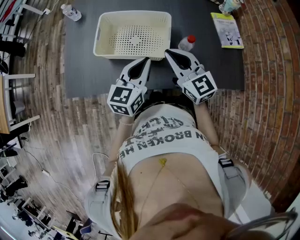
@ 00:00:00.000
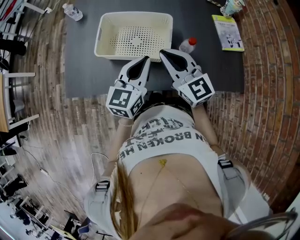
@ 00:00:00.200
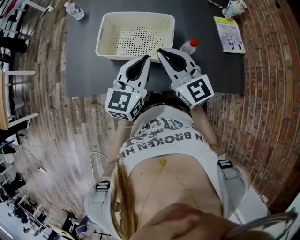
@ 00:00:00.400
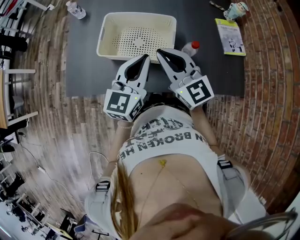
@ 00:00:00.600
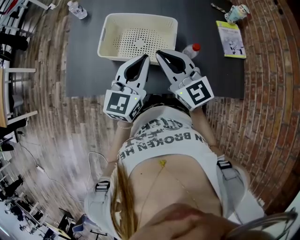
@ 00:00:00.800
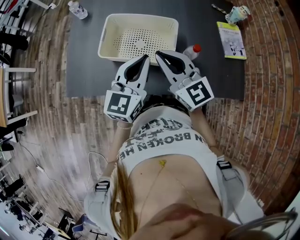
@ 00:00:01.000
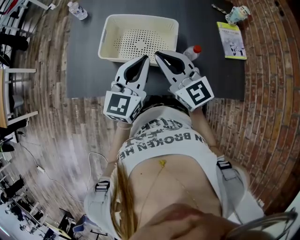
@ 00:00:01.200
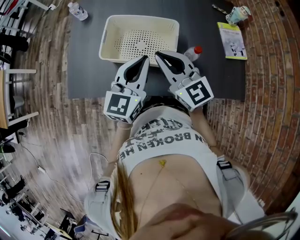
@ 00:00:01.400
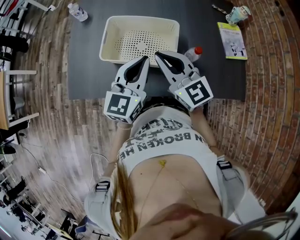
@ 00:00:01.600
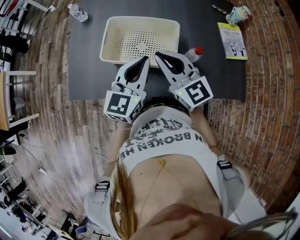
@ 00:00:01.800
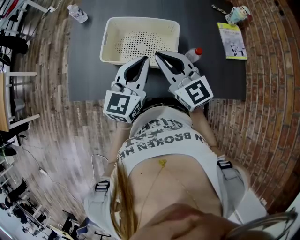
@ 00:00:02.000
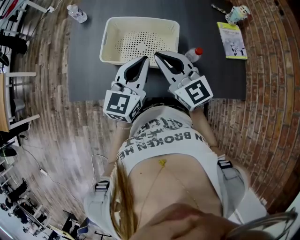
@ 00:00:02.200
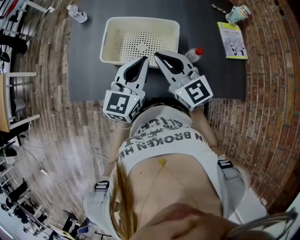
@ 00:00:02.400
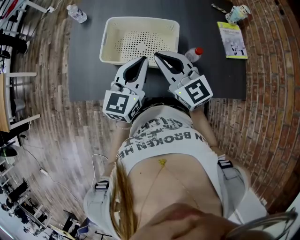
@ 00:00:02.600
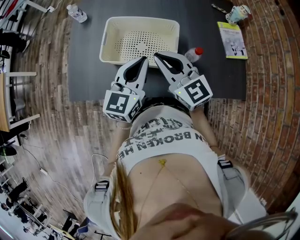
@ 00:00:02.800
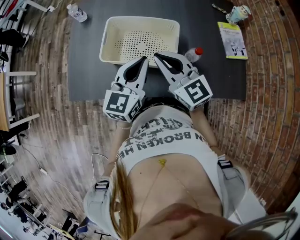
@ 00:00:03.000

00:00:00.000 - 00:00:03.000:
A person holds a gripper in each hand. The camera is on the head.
00:00:00.000 - 00:00:01.600: The left gripper shifts approximately 5 cm upward. Meanwhile the right gripper goes about 5 cm to the left.
00:00:01.600 - 00:00:03.000: The grippers stay close to where they were, moving slightly.

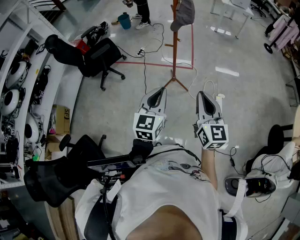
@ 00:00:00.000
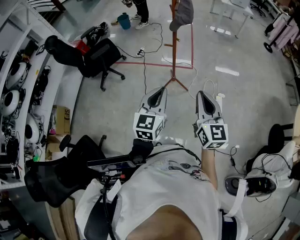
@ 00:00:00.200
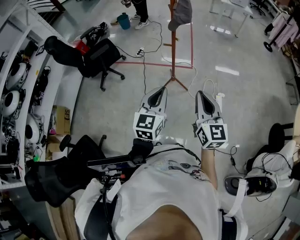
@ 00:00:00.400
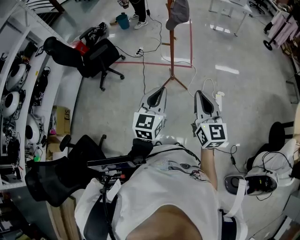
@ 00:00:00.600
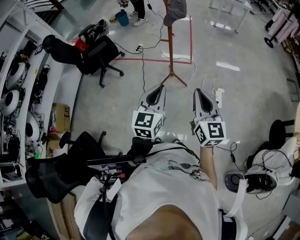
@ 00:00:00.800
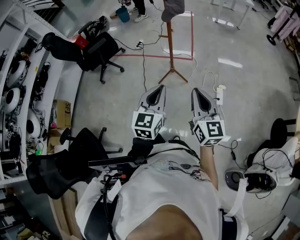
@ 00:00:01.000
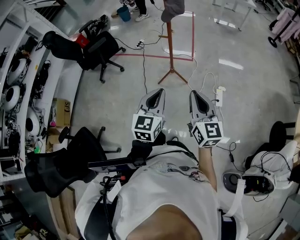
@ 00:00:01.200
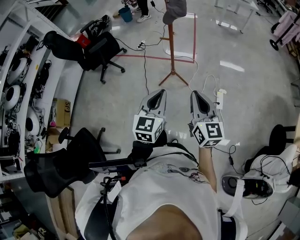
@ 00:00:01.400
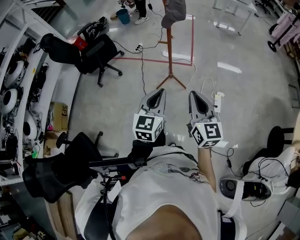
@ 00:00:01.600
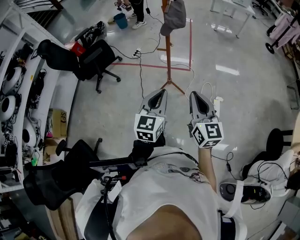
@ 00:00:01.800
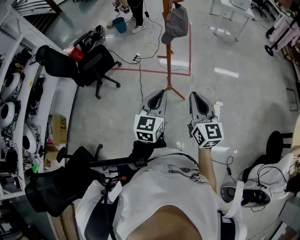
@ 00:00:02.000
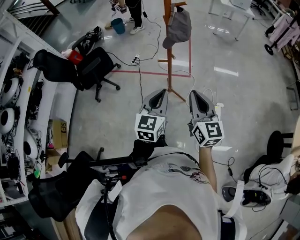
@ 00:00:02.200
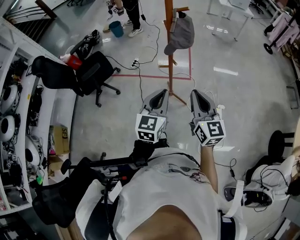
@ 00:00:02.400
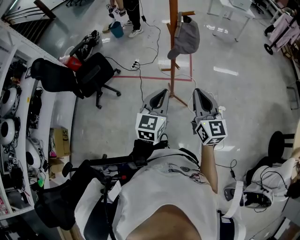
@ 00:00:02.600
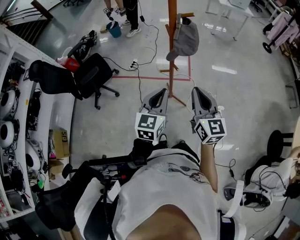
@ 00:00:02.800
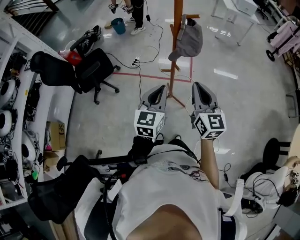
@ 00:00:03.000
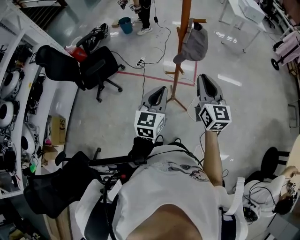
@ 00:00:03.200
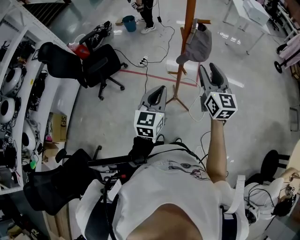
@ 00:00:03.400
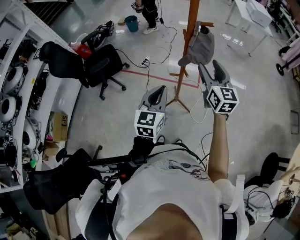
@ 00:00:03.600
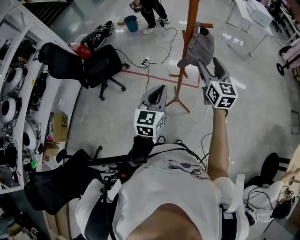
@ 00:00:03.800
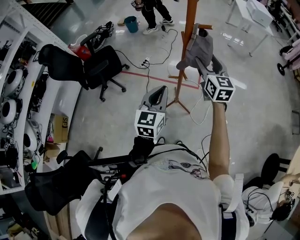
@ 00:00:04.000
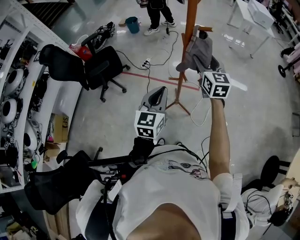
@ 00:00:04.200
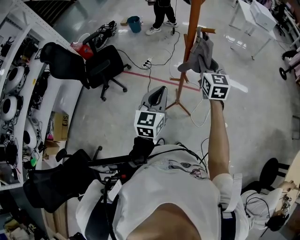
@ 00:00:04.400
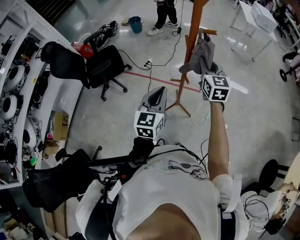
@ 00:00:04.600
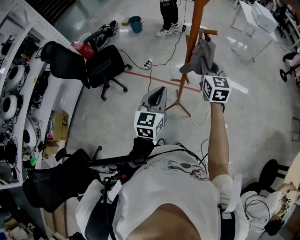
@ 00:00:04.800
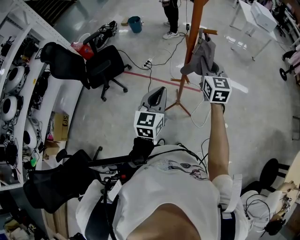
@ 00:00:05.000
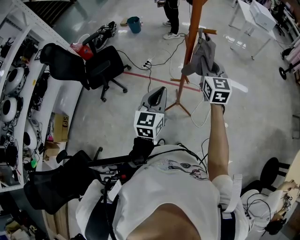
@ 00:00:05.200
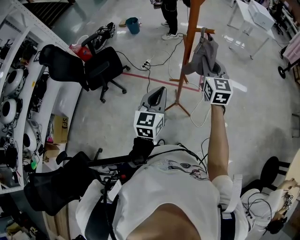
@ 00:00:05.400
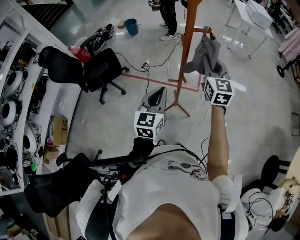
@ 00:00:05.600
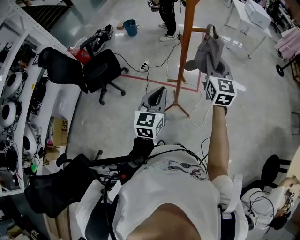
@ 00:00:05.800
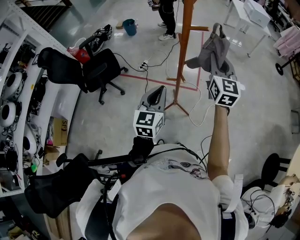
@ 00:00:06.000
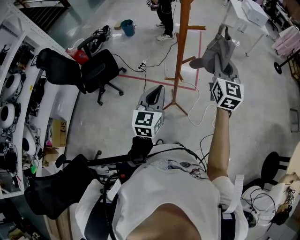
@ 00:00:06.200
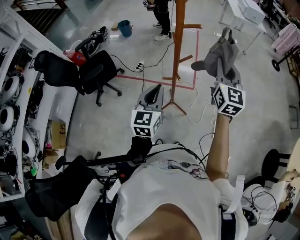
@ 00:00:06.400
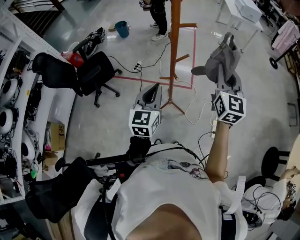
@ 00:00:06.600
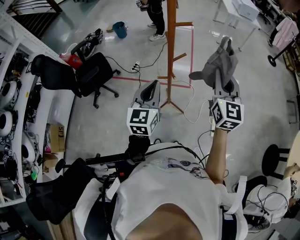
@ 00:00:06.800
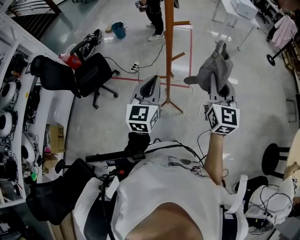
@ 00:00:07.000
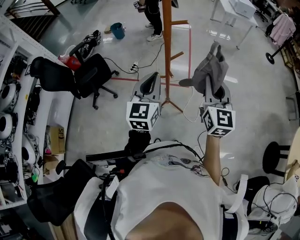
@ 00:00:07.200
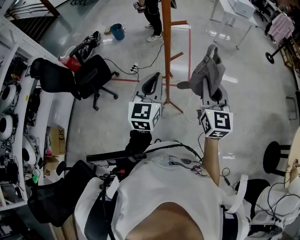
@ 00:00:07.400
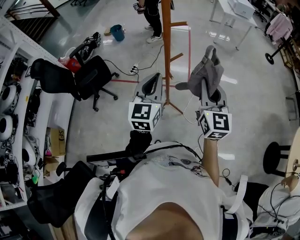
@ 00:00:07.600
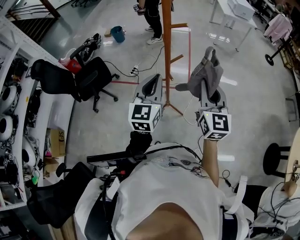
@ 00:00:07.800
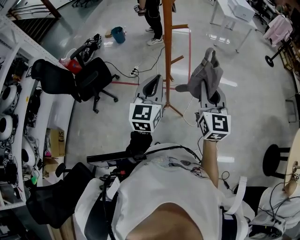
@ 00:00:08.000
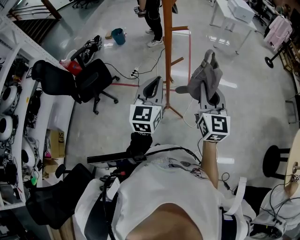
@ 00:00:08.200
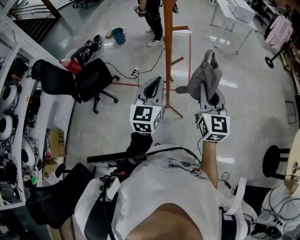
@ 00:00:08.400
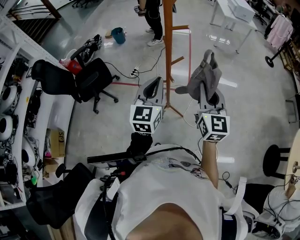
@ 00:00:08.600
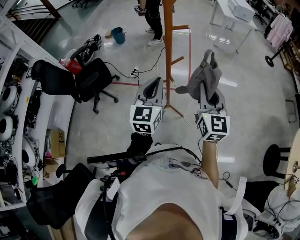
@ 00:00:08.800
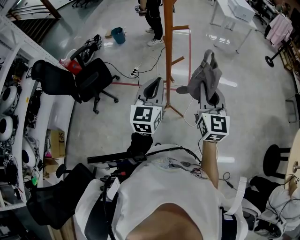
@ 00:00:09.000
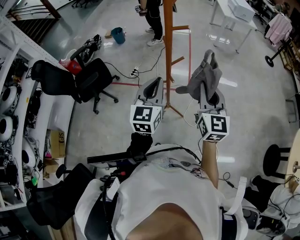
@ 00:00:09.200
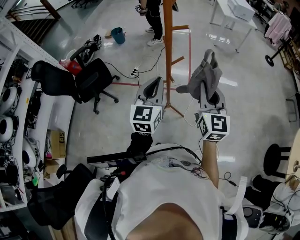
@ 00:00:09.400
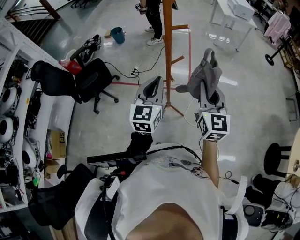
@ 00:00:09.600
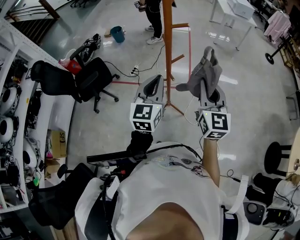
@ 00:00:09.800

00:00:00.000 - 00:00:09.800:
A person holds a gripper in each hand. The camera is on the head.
00:00:00.000 - 00:00:01.400: The right gripper changes place by about 5 cm, while the left gripper moves to the right, some 5 cm.
00:00:01.400 - 00:00:02.800: Both grippers travel together forward, roughly 25 cm.
00:00:02.800 - 00:00:04.200: The left gripper goes approximately 5 cm forward; the right gripper travels forward by some 25 cm, and opens up.
00:00:04.200 - 00:00:05.600: The right gripper closes its fingers.
00:00:05.600 - 00:00:07.000: The left gripper travels upward by about 5 cm. Meanwhile the right gripper moves backward and to the right, some 15 cm.
00:00:07.000 - 00:00:08.400: There are only small adjustments of the grippers.
00:00:08.400 - 00:00:09.800: Both grippers stay about where they are.

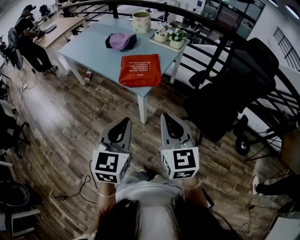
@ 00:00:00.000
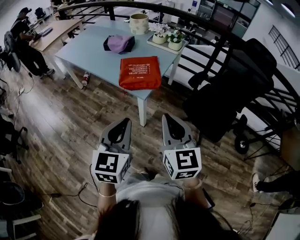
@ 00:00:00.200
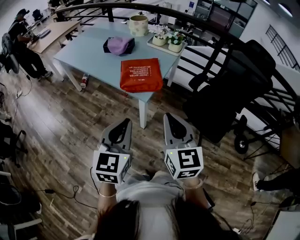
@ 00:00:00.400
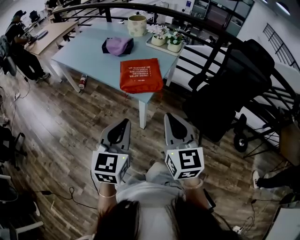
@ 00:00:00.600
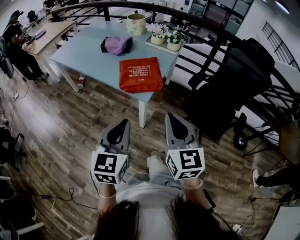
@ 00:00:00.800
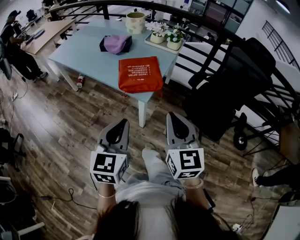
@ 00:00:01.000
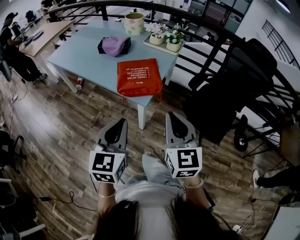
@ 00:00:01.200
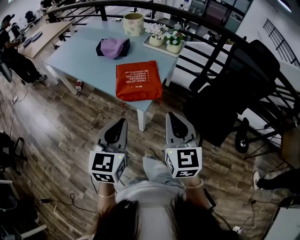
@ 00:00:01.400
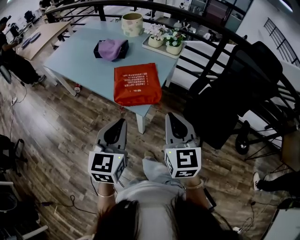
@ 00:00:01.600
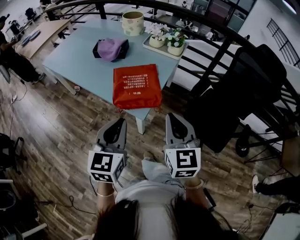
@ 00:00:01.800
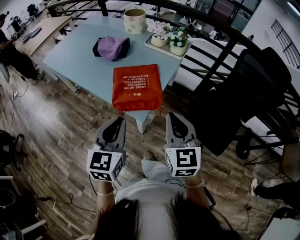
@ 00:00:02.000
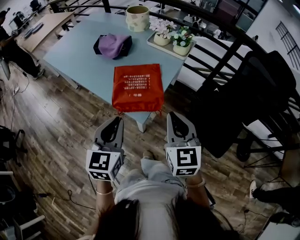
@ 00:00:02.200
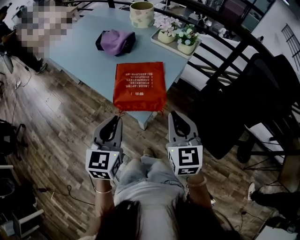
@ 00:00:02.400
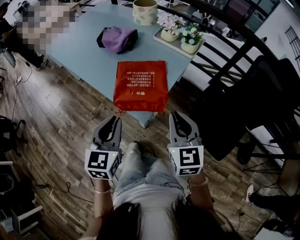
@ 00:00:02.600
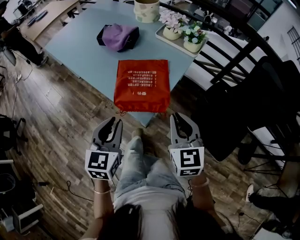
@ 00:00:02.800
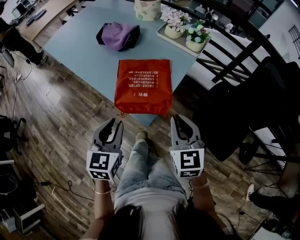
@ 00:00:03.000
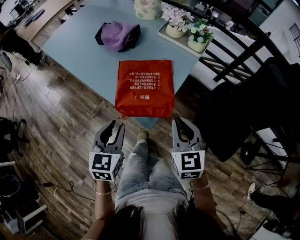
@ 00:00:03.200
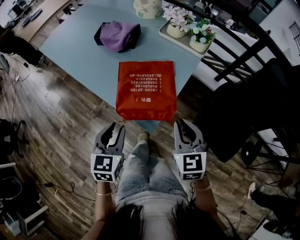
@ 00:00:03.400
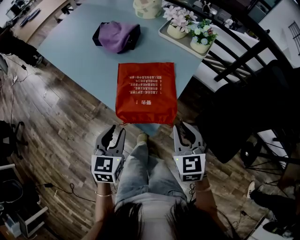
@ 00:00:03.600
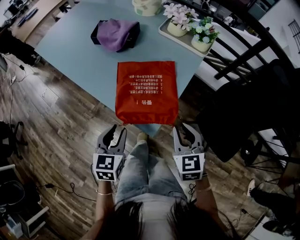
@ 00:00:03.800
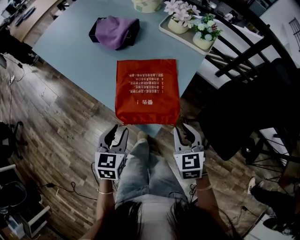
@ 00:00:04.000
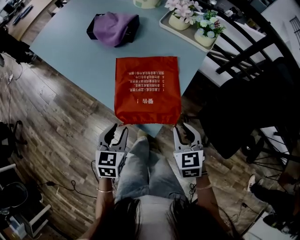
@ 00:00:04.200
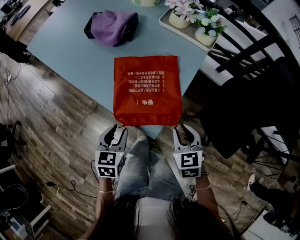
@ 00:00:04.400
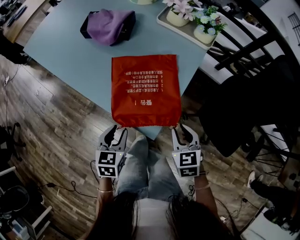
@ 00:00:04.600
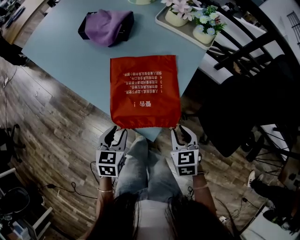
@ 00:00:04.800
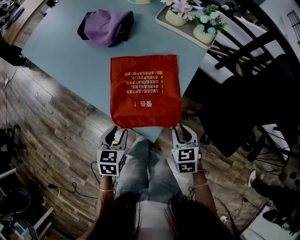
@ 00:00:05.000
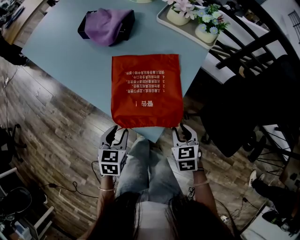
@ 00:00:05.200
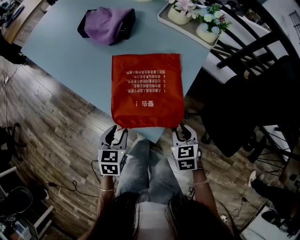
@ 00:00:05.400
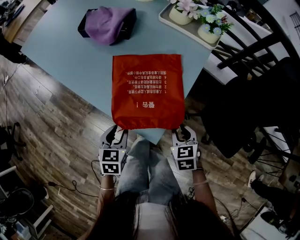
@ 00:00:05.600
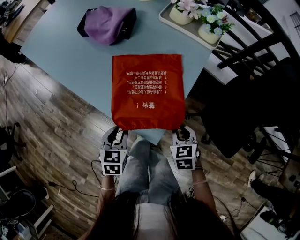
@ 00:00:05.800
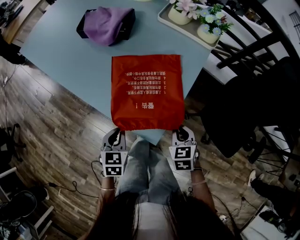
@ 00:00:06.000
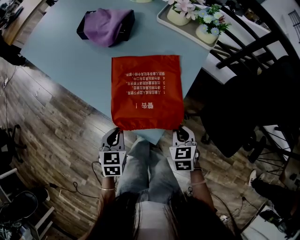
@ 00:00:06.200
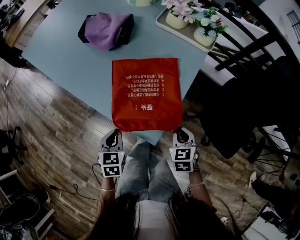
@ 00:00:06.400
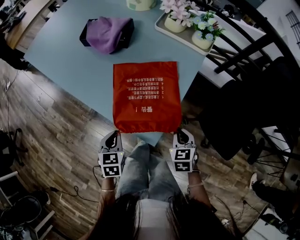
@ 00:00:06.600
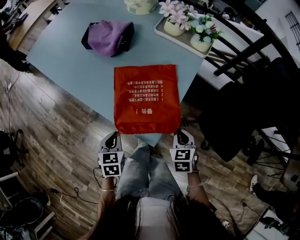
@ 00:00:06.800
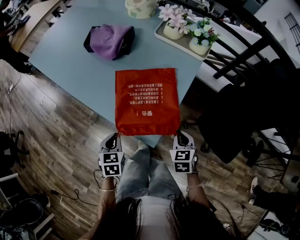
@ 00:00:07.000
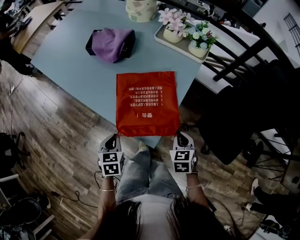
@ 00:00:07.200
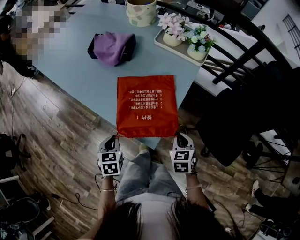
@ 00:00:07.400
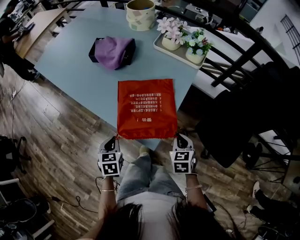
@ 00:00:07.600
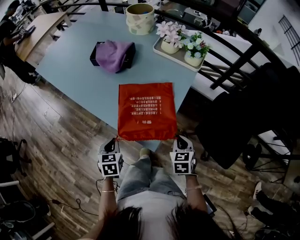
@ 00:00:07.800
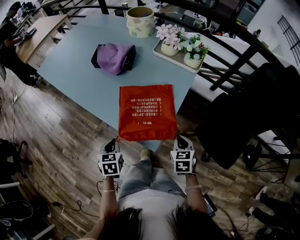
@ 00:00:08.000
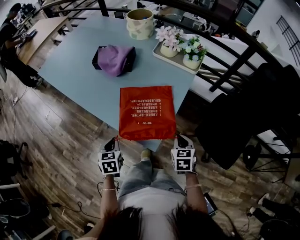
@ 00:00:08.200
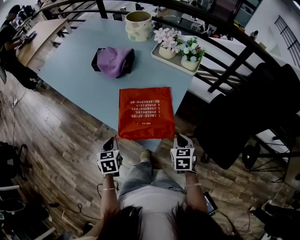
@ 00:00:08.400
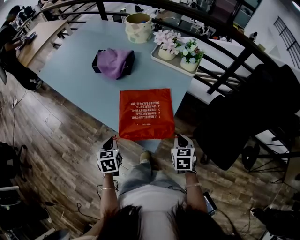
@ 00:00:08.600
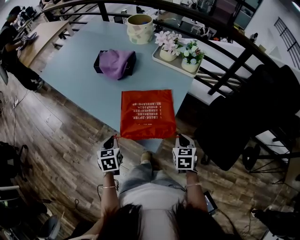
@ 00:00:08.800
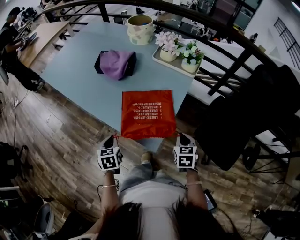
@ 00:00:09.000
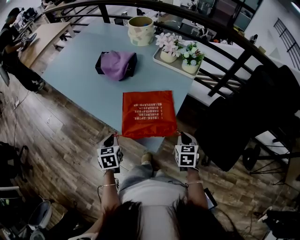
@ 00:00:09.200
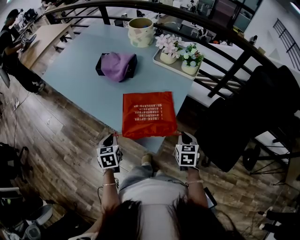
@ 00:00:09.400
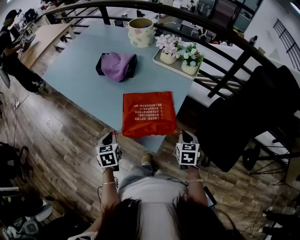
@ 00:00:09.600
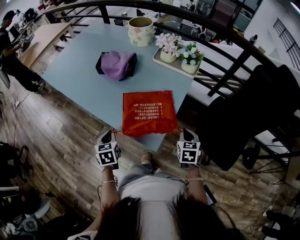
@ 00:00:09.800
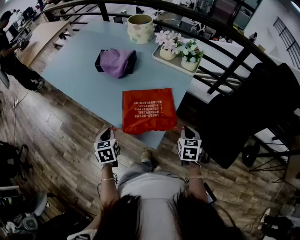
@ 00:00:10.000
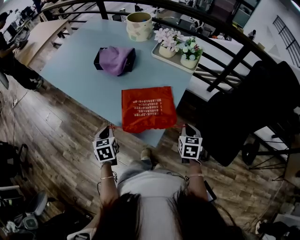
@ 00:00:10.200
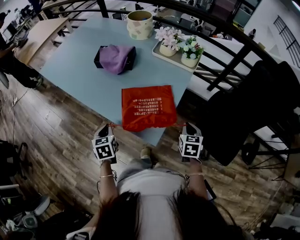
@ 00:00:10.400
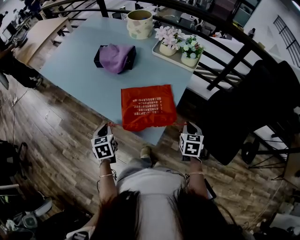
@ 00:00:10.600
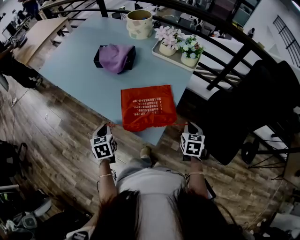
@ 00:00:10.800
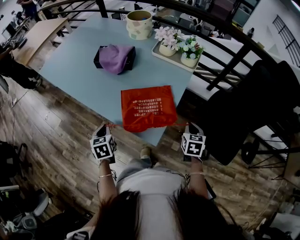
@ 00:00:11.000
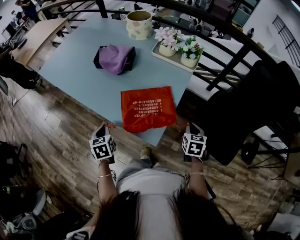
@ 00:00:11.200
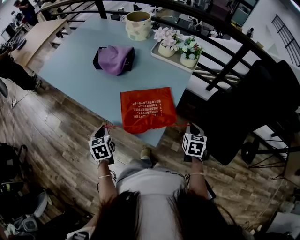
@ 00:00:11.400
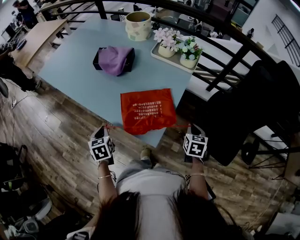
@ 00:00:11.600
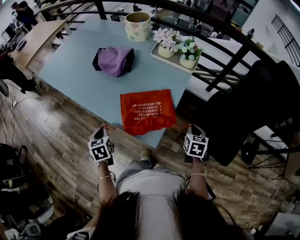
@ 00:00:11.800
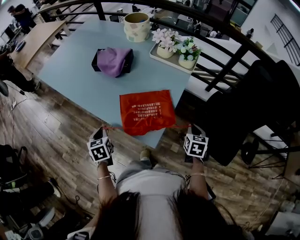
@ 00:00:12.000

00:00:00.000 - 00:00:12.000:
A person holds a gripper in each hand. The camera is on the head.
00:00:00.000 - 00:00:01.600: The grippers both shift forward by approximately 15 cm.
00:00:01.600 - 00:00:03.000: The grippers both shift forward and downward by some 15 cm.
00:00:03.000 - 00:00:04.400: Both grippers travel together downward, about 15 cm. The right gripper rotates about 20 degrees.
00:00:04.400 - 00:00:06.000: Both grippers travel together downward, about 5 cm. The left gripper closes.
00:00:06.000 - 00:00:07.600: The right gripper moves some 5 cm. The left gripper ends up about 5 cm from where it was.
00:00:07.600 - 00:00:09.000: The grippers move only a little.
00:00:09.000 - 00:00:10.400: The grippers make only small movements.
00:00:10.400 - 00:00:12.000: The grippers move only a little.
